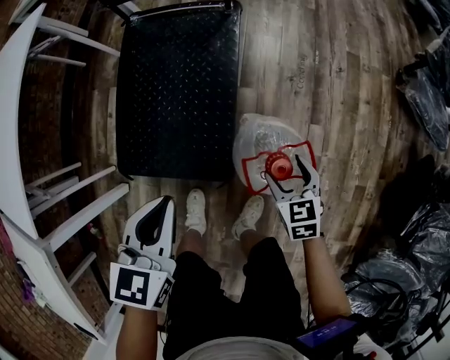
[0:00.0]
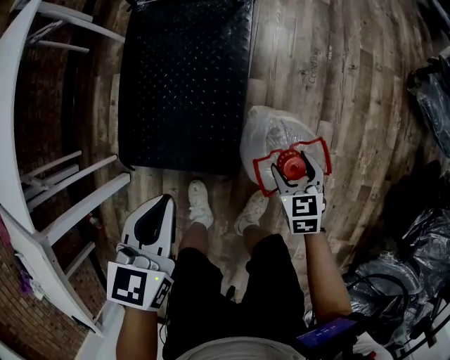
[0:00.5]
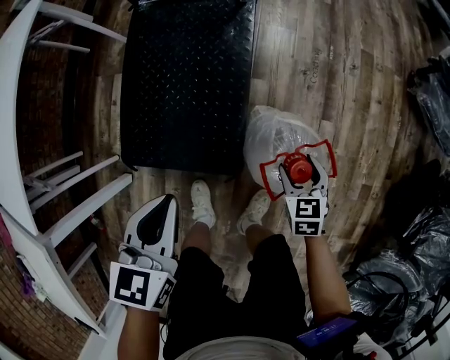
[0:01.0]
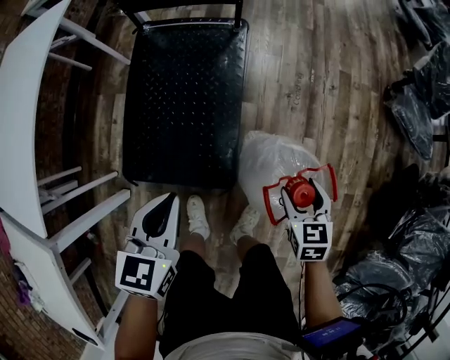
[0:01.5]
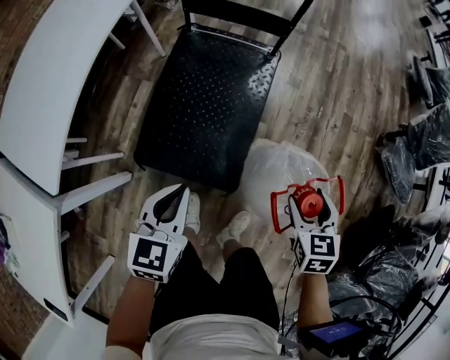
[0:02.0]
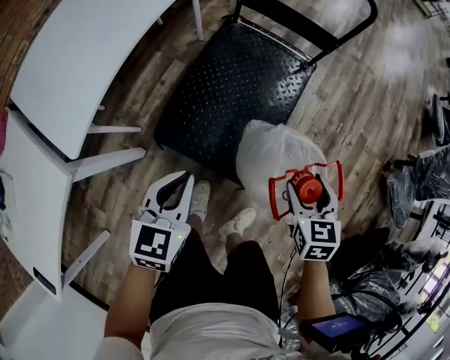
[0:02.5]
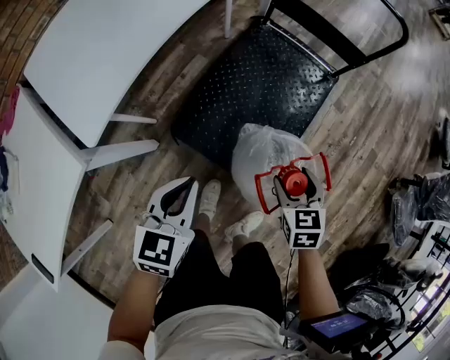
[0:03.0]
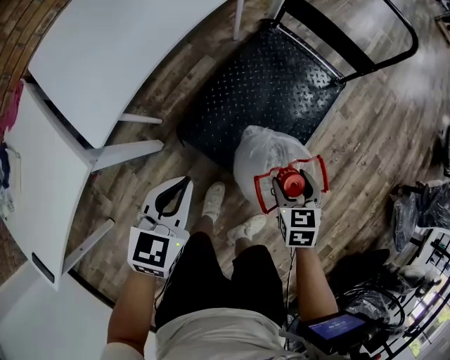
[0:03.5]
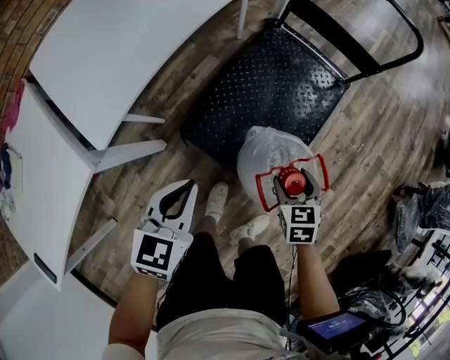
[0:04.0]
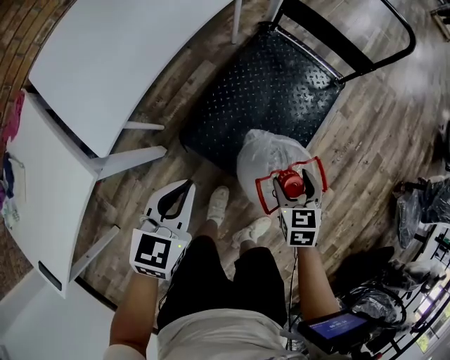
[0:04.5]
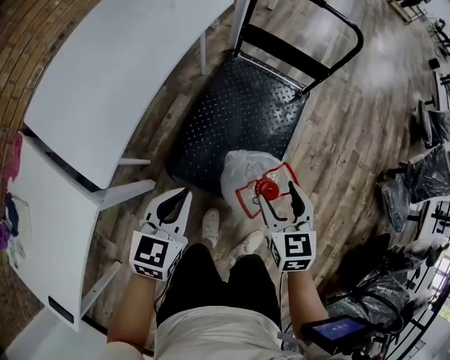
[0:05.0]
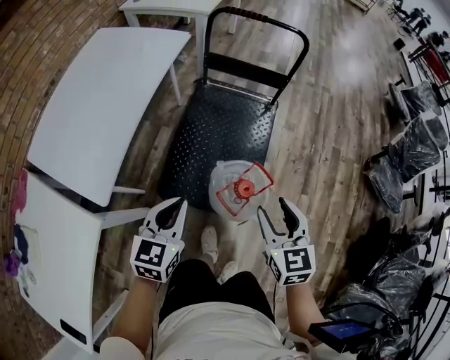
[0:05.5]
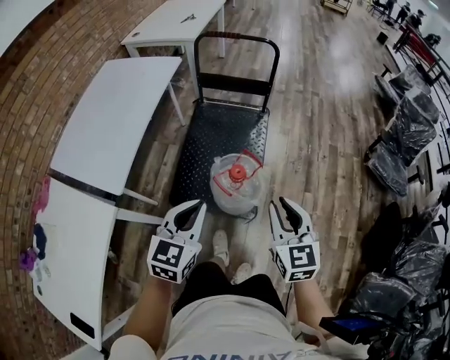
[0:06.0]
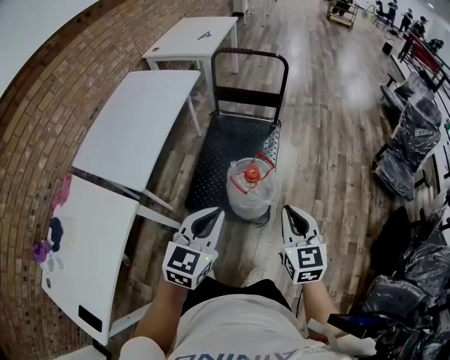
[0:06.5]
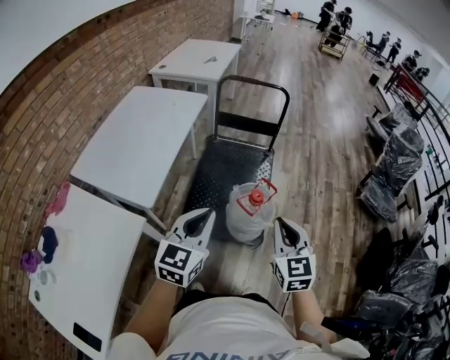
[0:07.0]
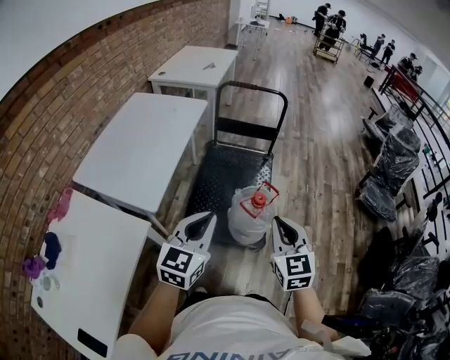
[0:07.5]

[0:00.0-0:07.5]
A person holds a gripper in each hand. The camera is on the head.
0:00.0 to 0:02.0: The left gripper moves to the left and upward, approximately 15 cm. The right gripper travels upward by roughly 20 cm.
0:02.0 to 0:04.0: The right gripper goes about 25 cm to the left and downward, and turns by roughly 20 degrees. Meanwhile the left gripper shifts roughly 20 cm to the left.
0:04.0 to 0:05.5: The left gripper is displaced upward and to the right by some 10 cm. The right gripper is displaced upward by approximately 25 cm, and changes its angle by some 30 degrees.
0:05.5 to 0:07.5: The right gripper travels backward and upward by about 20 cm, and closes up. Meanwhile the left gripper travels upward and backward by about 20 cm, and changes its angle by about 20 degrees.

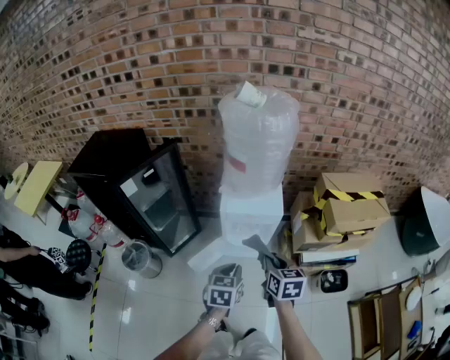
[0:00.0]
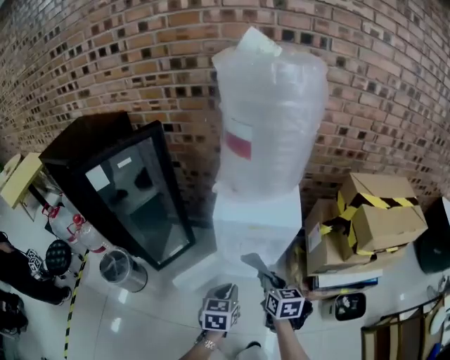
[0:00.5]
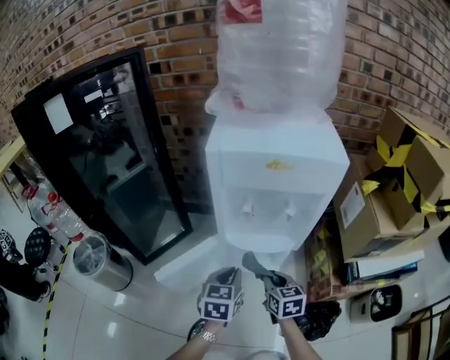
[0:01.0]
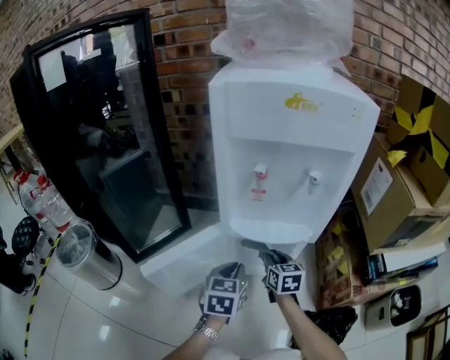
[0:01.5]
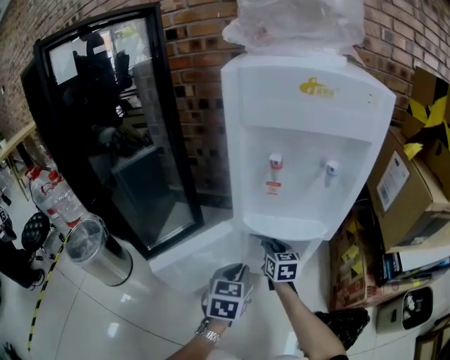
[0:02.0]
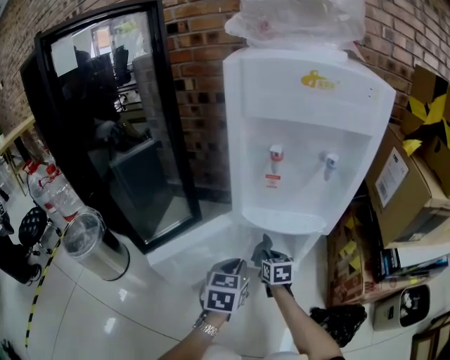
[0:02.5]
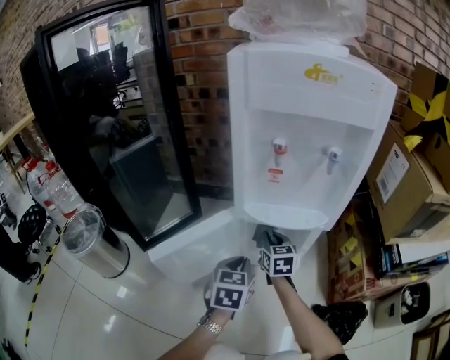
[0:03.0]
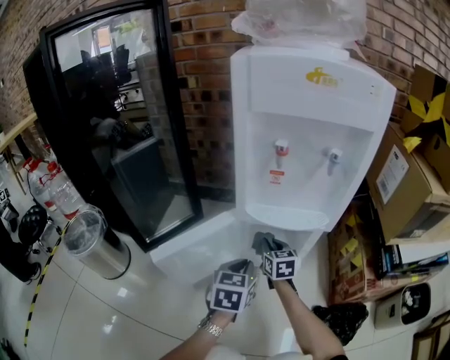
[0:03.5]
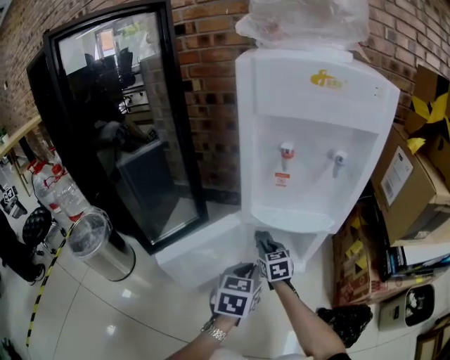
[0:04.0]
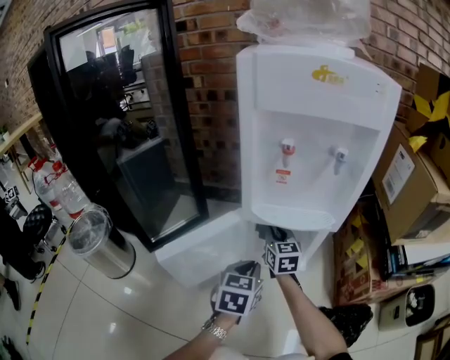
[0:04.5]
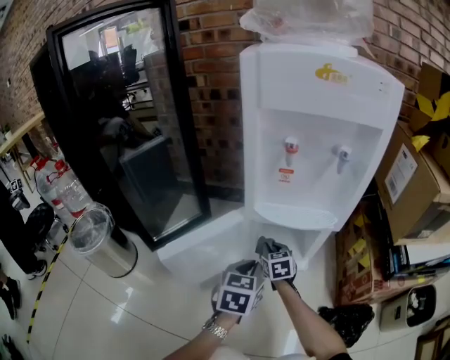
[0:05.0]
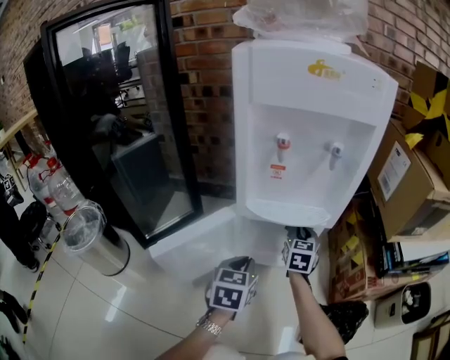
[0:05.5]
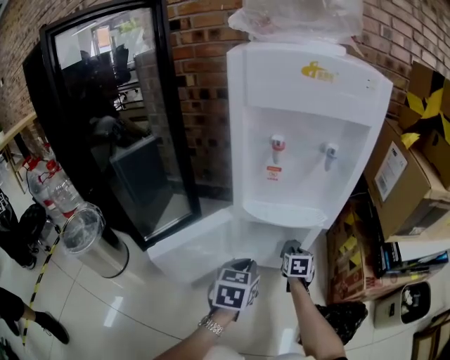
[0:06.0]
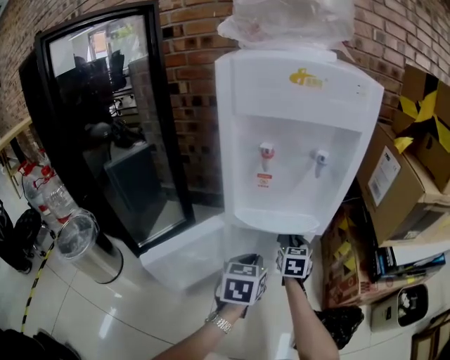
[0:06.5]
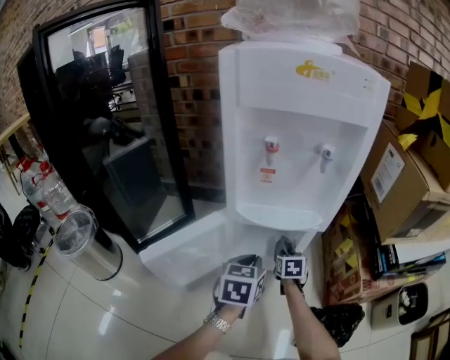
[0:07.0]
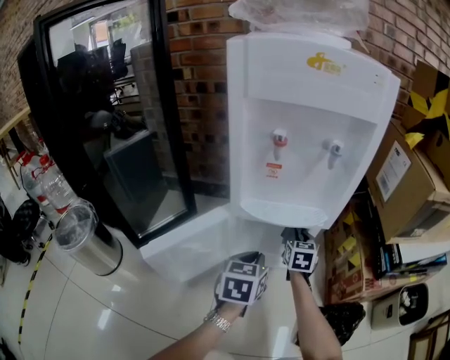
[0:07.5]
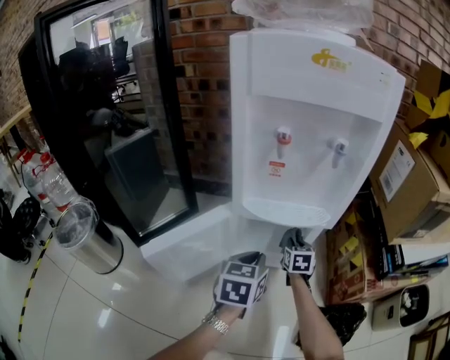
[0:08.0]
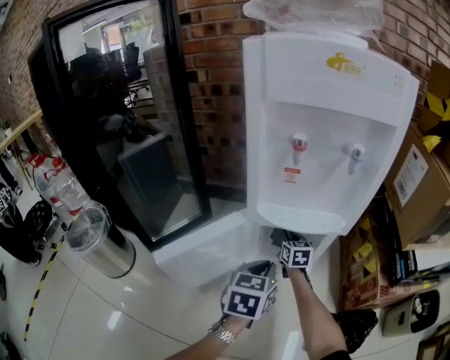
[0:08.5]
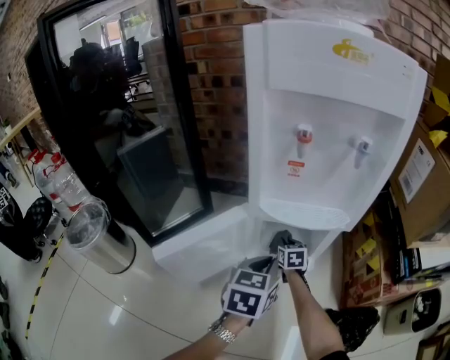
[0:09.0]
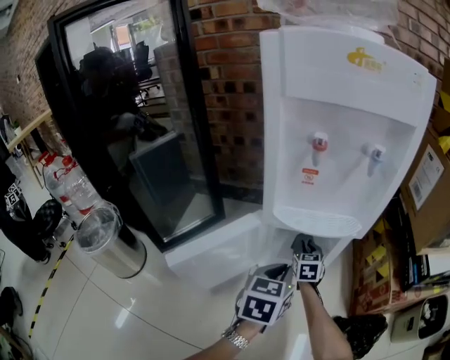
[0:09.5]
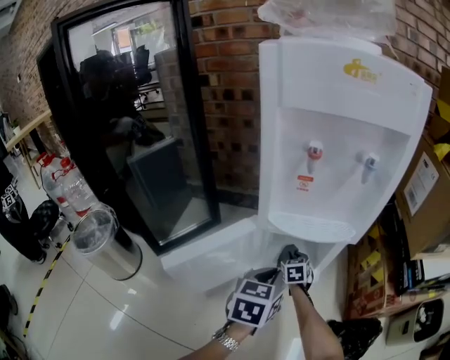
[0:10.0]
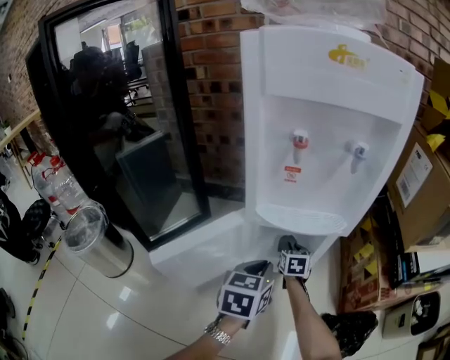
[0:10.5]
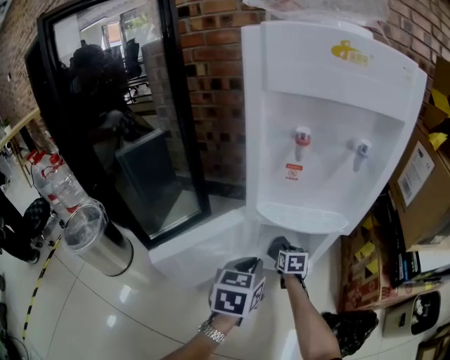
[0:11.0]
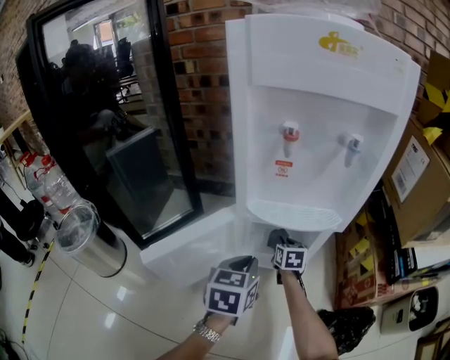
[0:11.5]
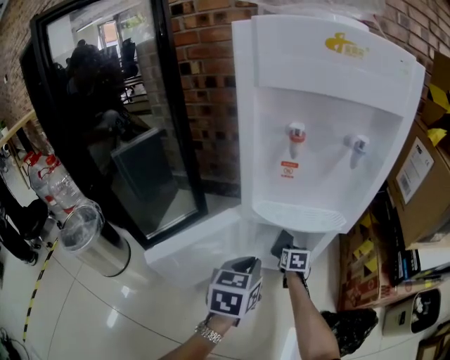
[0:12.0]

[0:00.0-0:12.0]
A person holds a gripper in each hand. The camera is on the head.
0:00.0 to 0:02.0: The grippers both shift downward by roughly 60 cm.
0:02.0 to 0:04.0: The right gripper moves up and down over about 10 cm, changing direction 2 times.
0:04.0 to 0:06.0: The right gripper goes about 15 cm to the right, and rotates about 20 degrees.
0:06.0 to 0:08.0: The right gripper goes up and down, about 10 cm each way, reversing 3 times.
0:08.0 to 0:10.0: The right gripper travels to the left by approximately 10 cm.
0:10.0 to 0:12.0: The right gripper goes roughly 5 cm to the right.

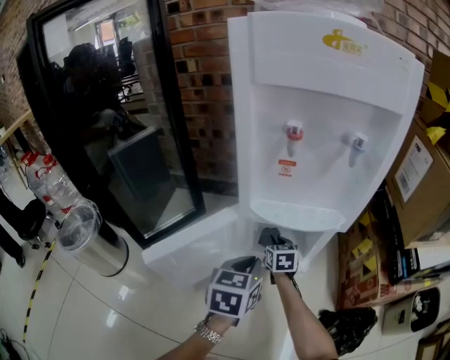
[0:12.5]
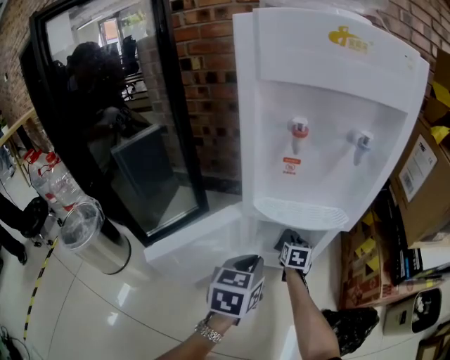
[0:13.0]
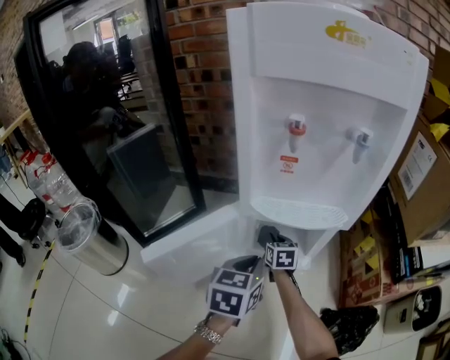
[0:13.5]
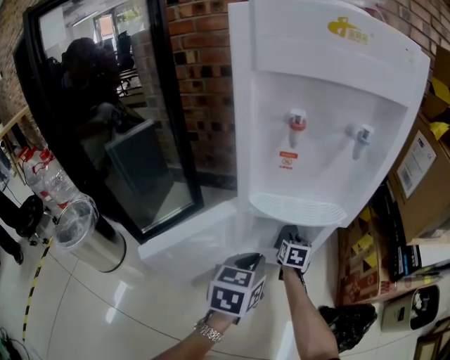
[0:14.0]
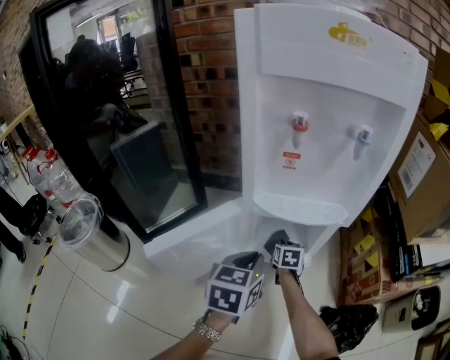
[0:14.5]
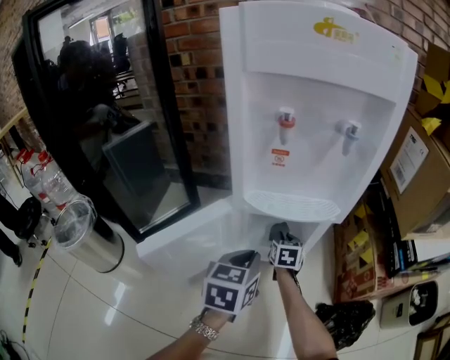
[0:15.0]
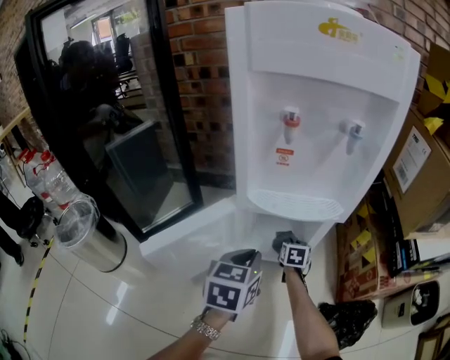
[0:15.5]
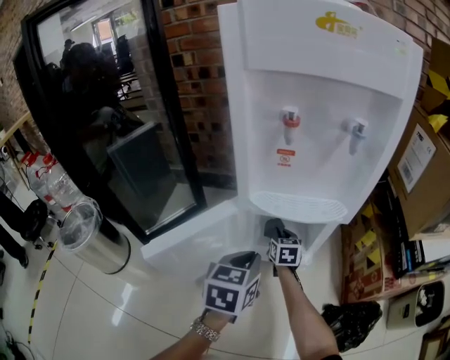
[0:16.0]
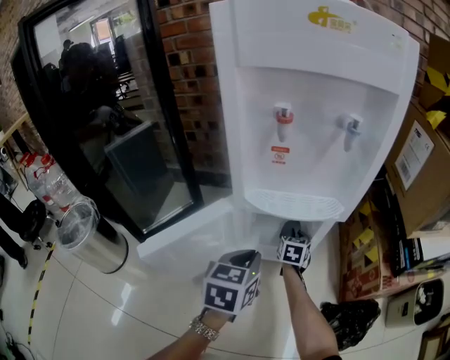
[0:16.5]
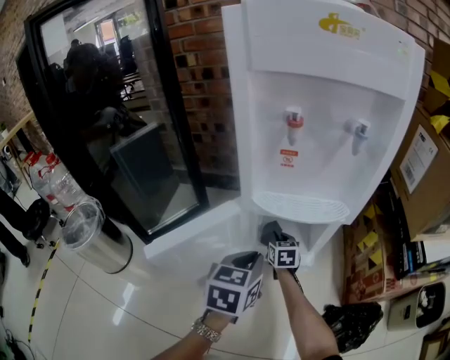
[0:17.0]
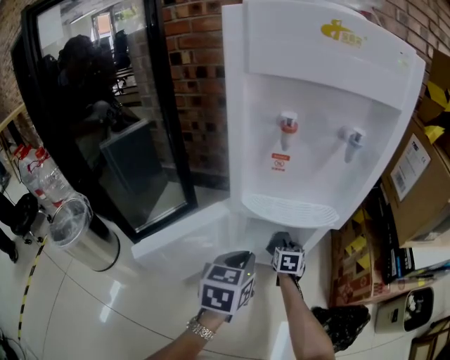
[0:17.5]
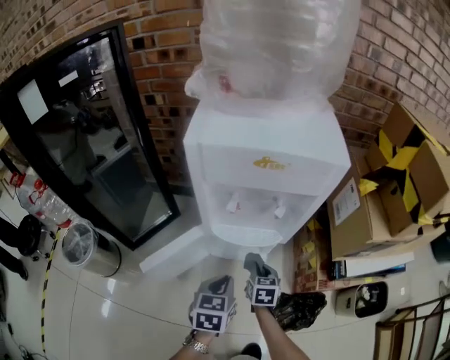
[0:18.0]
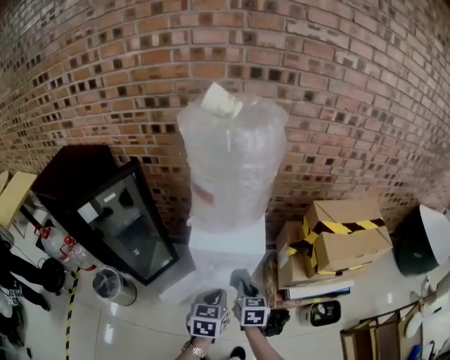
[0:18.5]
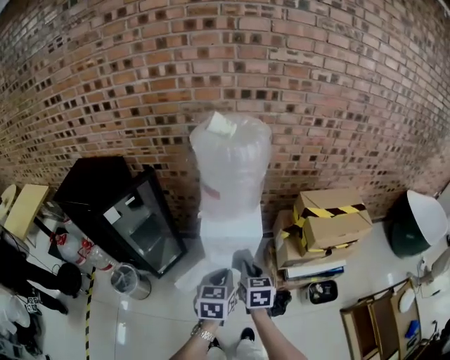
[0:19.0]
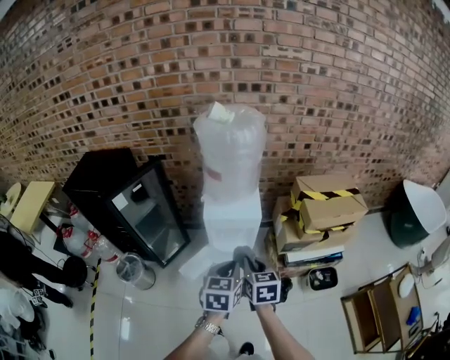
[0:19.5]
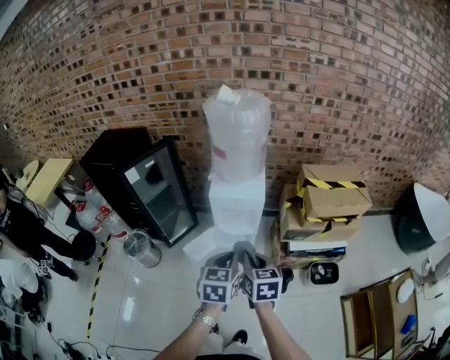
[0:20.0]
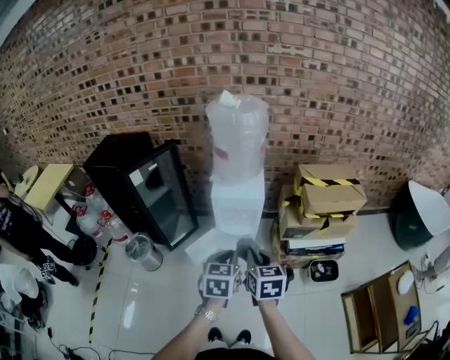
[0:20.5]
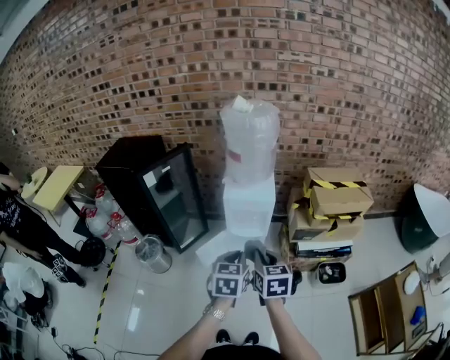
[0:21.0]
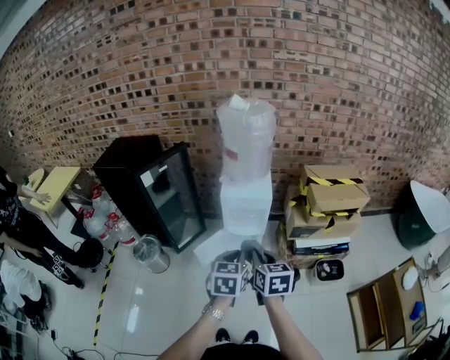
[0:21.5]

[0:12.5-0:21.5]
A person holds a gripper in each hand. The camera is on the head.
0:12.5 to 0:14.5: The right gripper moves left and right over some 10 cm, changing direction 2 times.
0:14.5 to 0:17.0: The right gripper swings left and right, some 10 cm each way, with 3 reversals.
0:17.0 to 0:19.5: Both grippers travel together upward, roughly 80 cm.
0:19.5 to 0:21.5: Both grippers travel together backward, about 15 cm.
